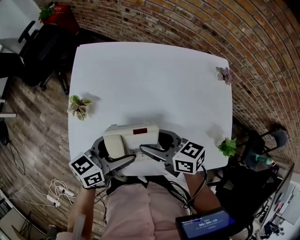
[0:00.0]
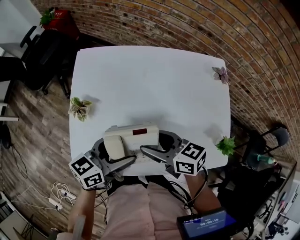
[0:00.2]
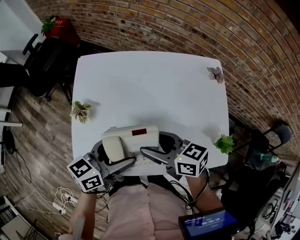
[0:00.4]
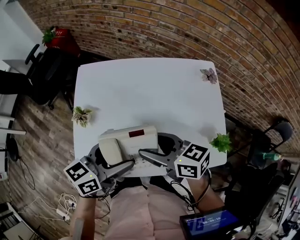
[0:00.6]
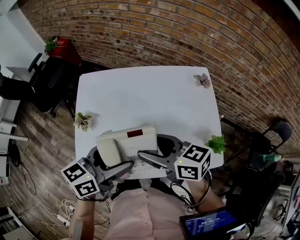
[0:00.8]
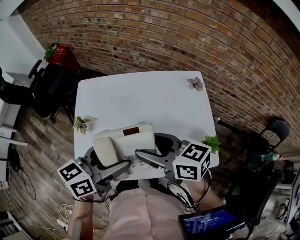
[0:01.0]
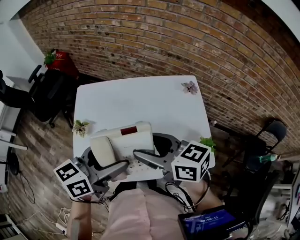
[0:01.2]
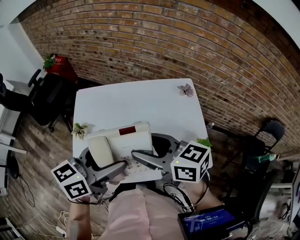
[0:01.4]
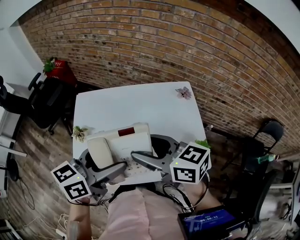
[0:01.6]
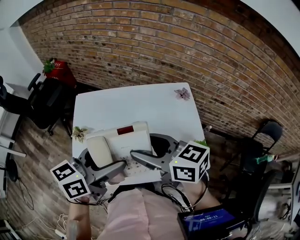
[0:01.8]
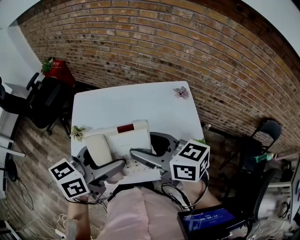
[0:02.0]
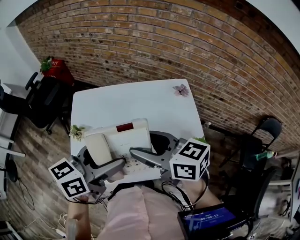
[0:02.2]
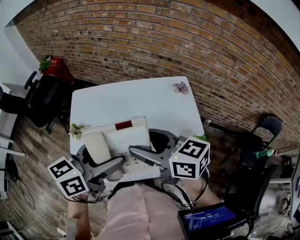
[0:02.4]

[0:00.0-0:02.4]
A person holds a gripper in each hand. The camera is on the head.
0.0 to 1.2 s: Both grippers move upward, about 20 cm.
1.2 to 2.4 s: The grippers move only a little.

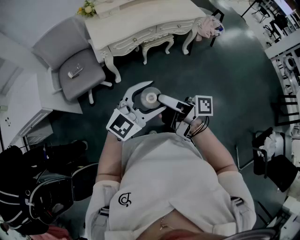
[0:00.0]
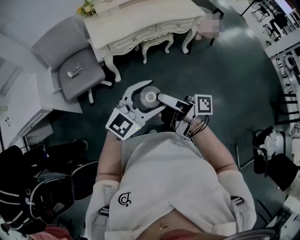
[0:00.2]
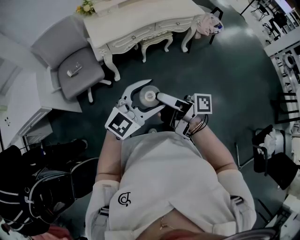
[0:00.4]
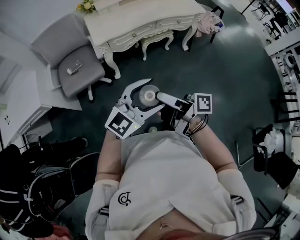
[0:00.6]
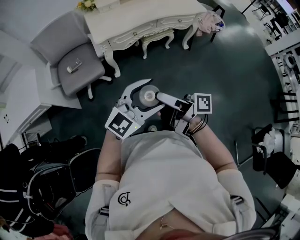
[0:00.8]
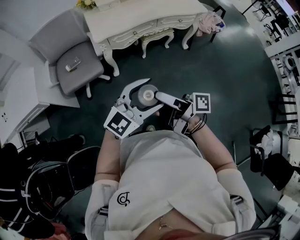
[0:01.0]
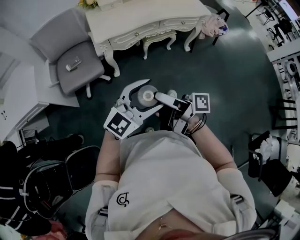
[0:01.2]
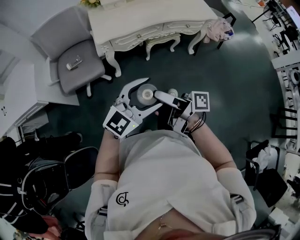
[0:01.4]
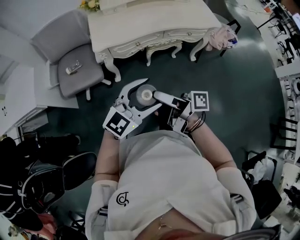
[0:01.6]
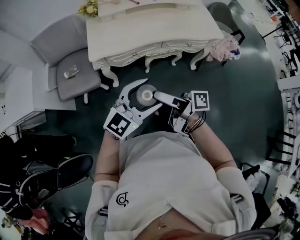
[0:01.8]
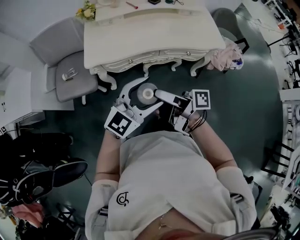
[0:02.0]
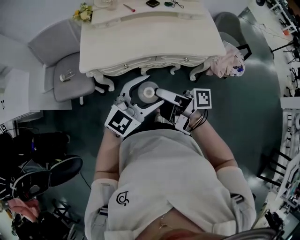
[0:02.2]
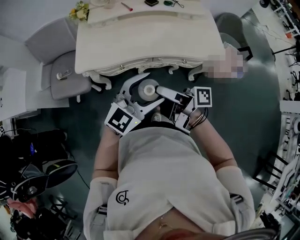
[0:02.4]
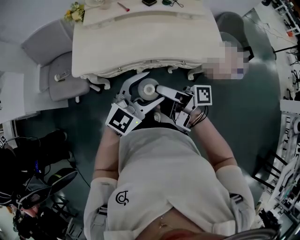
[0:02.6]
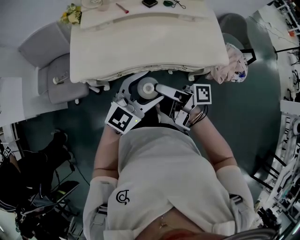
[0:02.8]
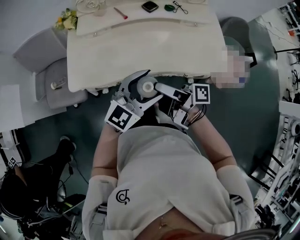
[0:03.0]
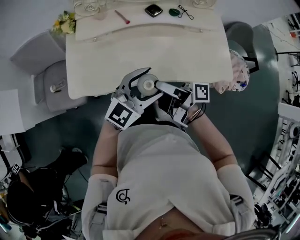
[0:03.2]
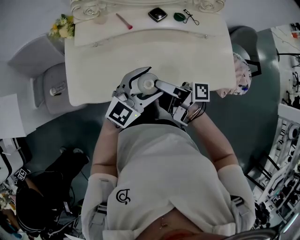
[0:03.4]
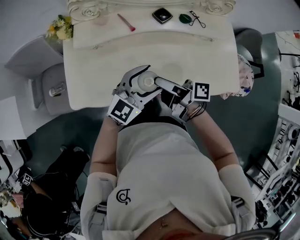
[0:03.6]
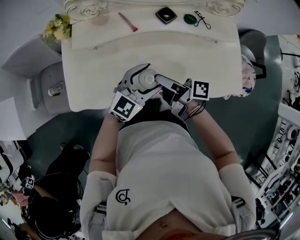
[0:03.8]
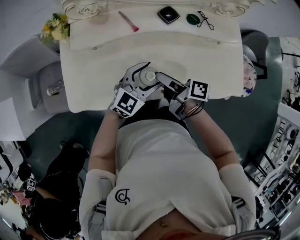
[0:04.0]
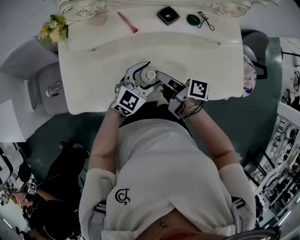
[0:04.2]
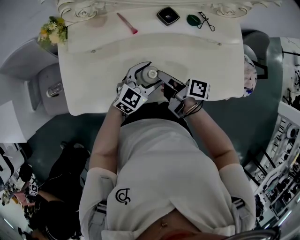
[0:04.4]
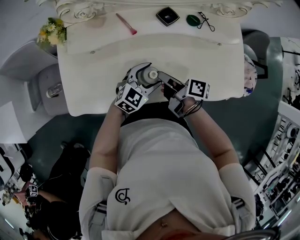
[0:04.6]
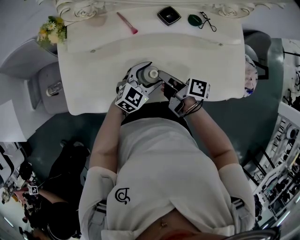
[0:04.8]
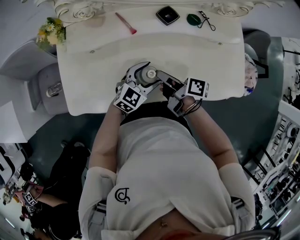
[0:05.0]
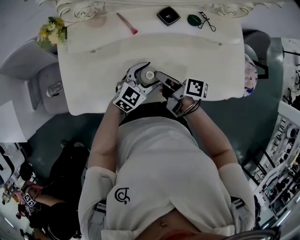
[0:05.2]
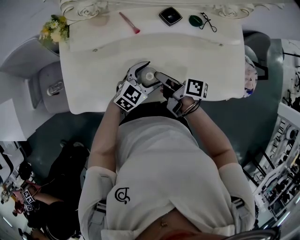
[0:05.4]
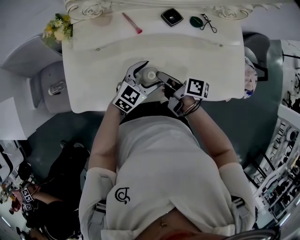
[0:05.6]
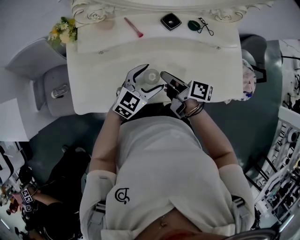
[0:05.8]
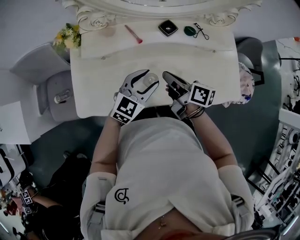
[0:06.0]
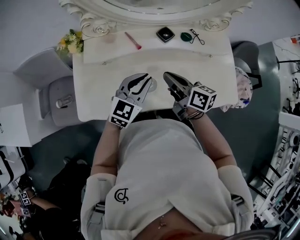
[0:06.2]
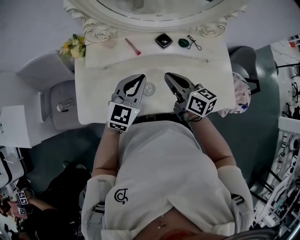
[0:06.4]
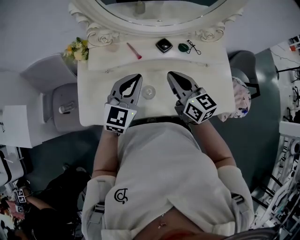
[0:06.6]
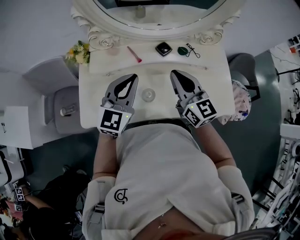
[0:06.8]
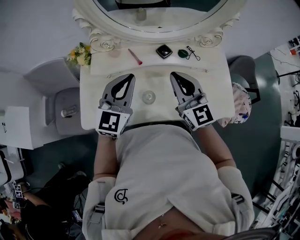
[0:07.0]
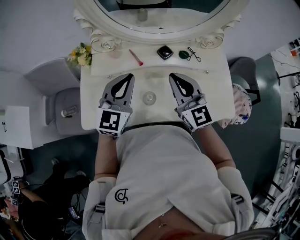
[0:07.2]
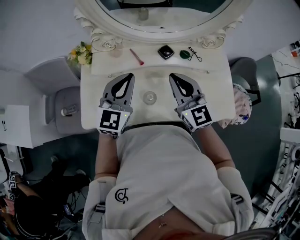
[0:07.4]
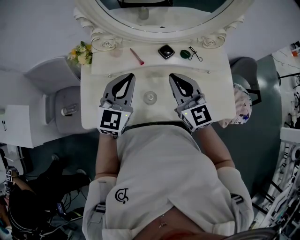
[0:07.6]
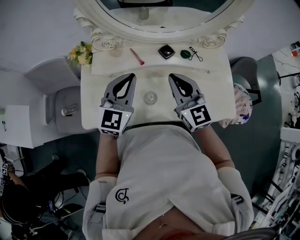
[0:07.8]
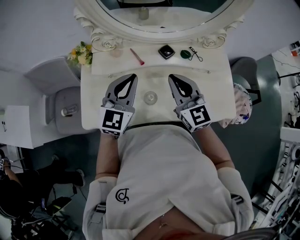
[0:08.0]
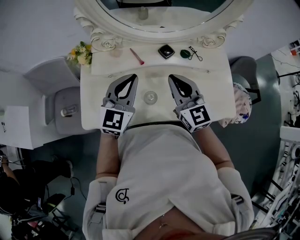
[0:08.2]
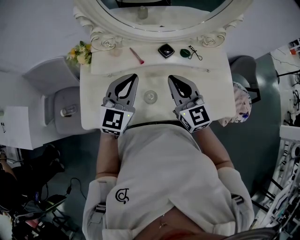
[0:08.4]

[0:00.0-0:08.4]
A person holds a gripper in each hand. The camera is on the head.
0.0 to 1.4 s: The two grippers go approximately 10 cm forward.
1.4 to 2.8 s: Both grippers are carried forward and to the right, about 40 cm.
2.8 to 4.2 s: The grippers both shift forward and downward by roughly 30 cm. The right gripper turns by about 30 degrees, and closes.
4.2 to 5.6 s: The grippers move only a little.
5.6 to 7.0 s: Both grippers move upward, about 25 cm. The right gripper rolls counterclockwise, seen from behind, by about 90 degrees, and closes its fingers. The left gripper changes its angle by some 40 degrees, and closes up.
7.0 to 8.4 s: There are only small adjustments of the grippers.

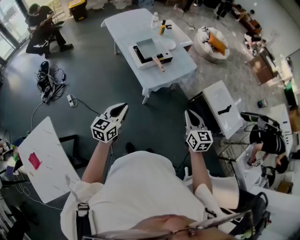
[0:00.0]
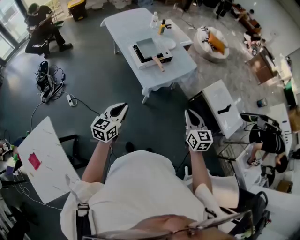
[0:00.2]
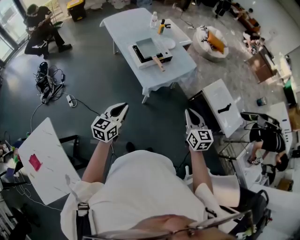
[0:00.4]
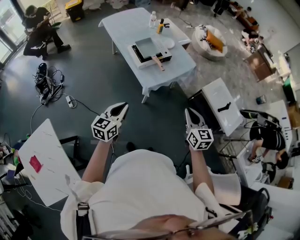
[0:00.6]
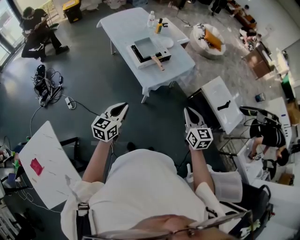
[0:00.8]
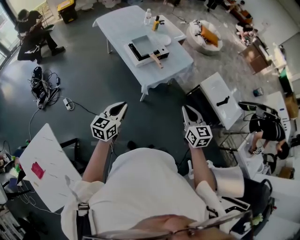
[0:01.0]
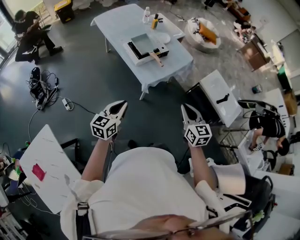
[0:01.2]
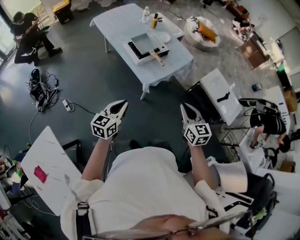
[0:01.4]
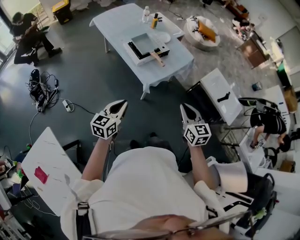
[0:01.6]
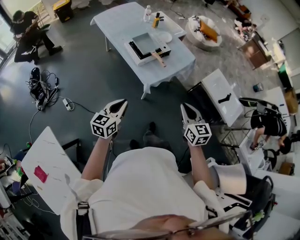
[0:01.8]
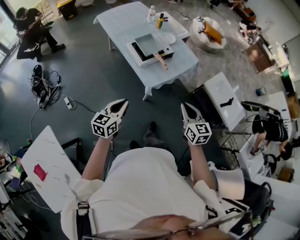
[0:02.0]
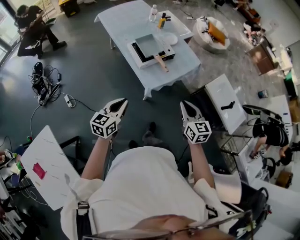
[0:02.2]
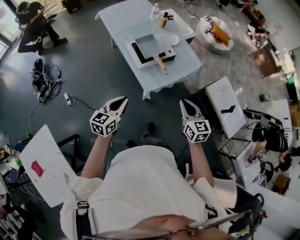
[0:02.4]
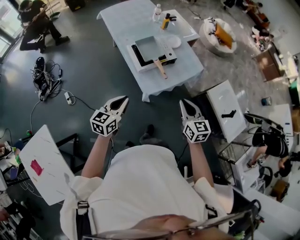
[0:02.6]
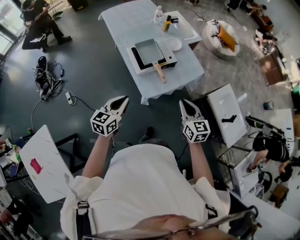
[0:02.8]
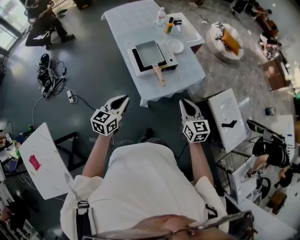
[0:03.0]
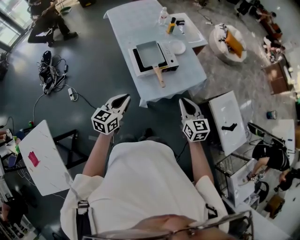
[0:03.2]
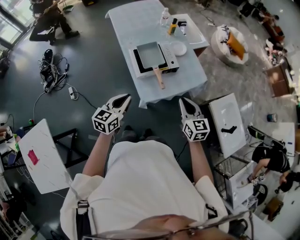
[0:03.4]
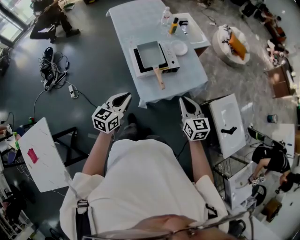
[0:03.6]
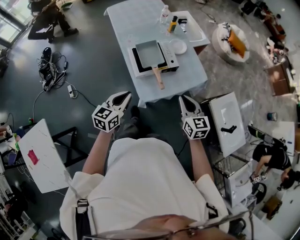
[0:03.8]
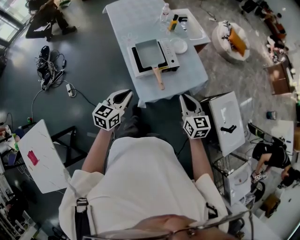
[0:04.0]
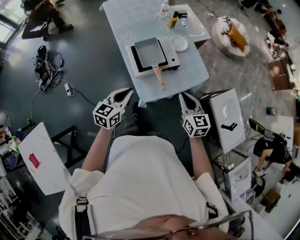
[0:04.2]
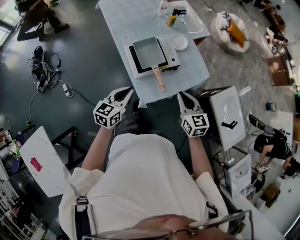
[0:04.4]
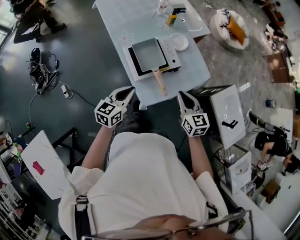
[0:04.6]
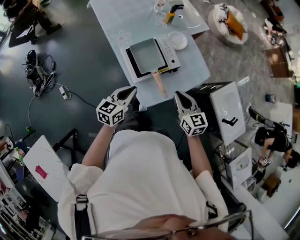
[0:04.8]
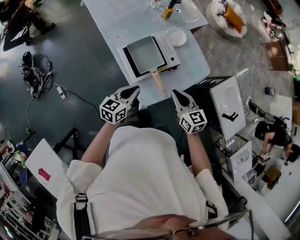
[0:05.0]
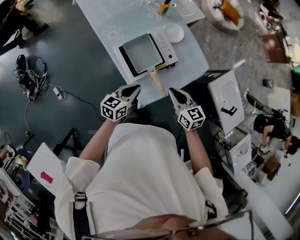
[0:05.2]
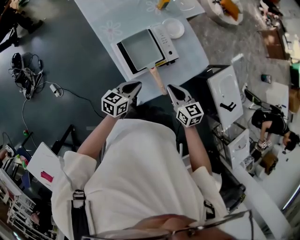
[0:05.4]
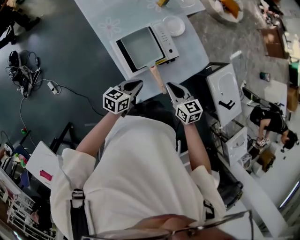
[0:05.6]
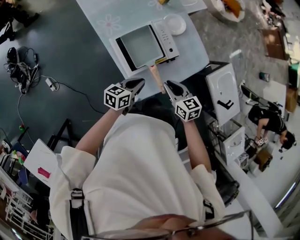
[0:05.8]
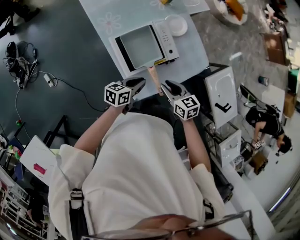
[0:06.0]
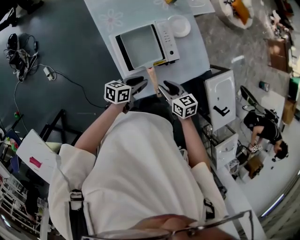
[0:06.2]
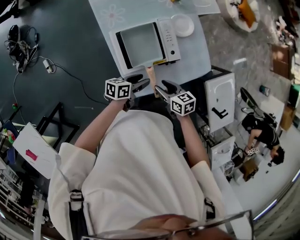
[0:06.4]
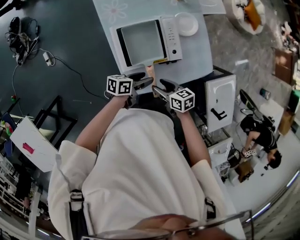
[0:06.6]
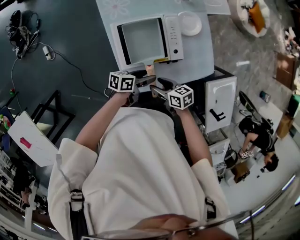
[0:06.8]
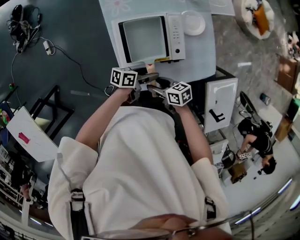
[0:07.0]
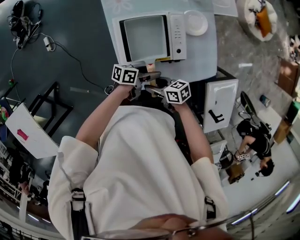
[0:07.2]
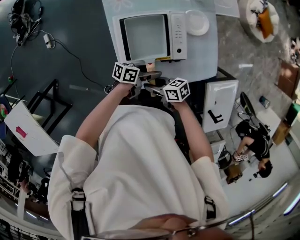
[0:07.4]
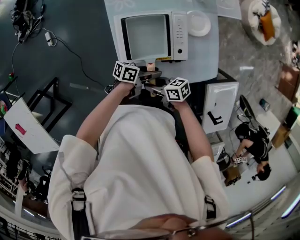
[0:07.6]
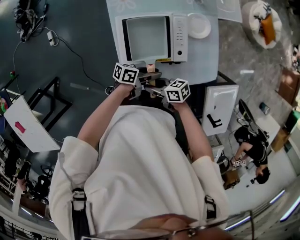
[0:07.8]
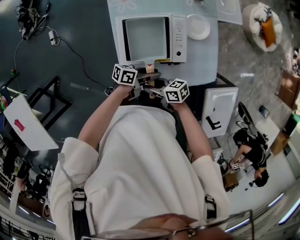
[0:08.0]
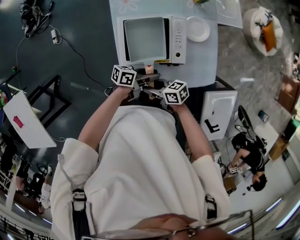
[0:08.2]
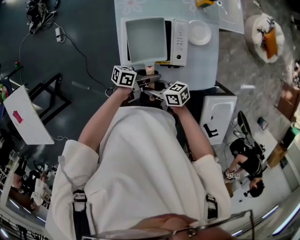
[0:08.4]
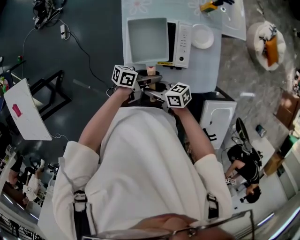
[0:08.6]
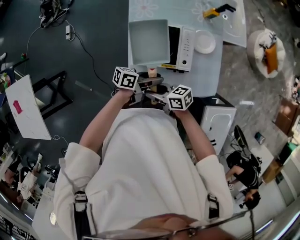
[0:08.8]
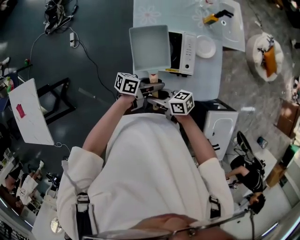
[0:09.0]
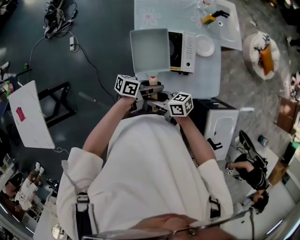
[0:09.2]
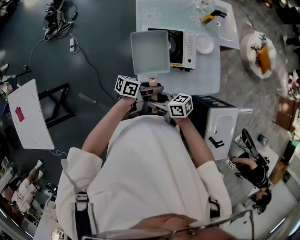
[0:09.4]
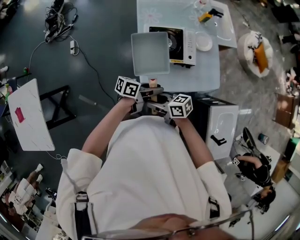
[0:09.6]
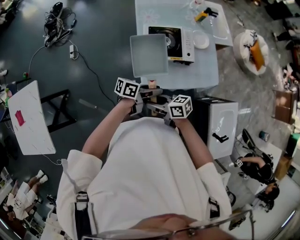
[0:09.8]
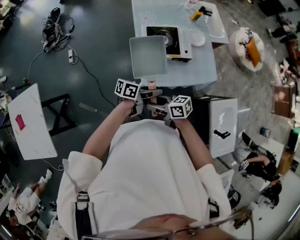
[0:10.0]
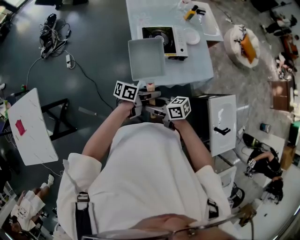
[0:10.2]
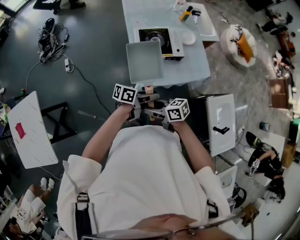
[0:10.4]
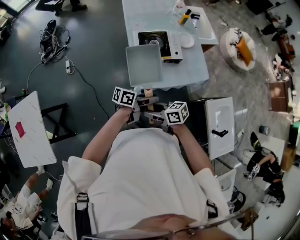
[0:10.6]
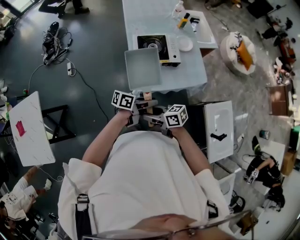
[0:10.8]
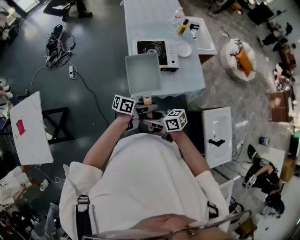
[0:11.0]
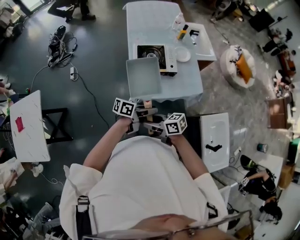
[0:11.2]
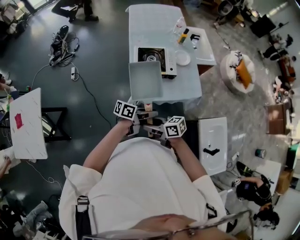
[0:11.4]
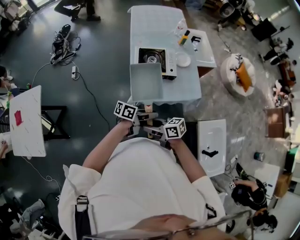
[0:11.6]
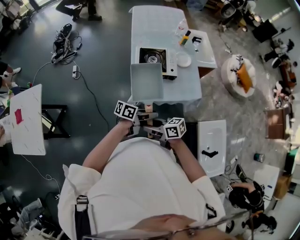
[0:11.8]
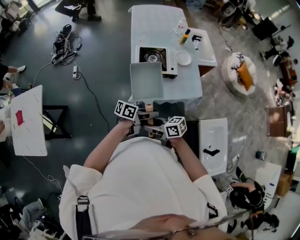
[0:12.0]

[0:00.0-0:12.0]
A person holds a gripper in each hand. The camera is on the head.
0.0 to 1.6 s: The two grippers go roughly 5 cm to the left.
1.6 to 3.0 s: The grippers both shift forward by about 20 cm.
3.0 to 4.4 s: Both grippers travel together forward, some 10 cm.
4.4 to 6.0 s: The left gripper goes some 20 cm downward and forward, and turns by roughly 40 degrees. Meanwhile the right gripper shifts roughly 15 cm downward, forward and to the left, rotates roughly 20 degrees, and opens up.
6.0 to 7.6 s: The right gripper moves downward, some 10 cm, turns by about 50 degrees, and opens, then closes again. Meanwhile the left gripper ends up approximately 15 cm from where it was, rotates approximately 30 degrees, and opens.
7.6 to 9.0 s: Both grippers move upward, approximately 10 cm.
9.0 to 10.4 s: The left gripper ends up about 20 cm from where it was, while the right gripper shifts by roughly 20 cm.
10.4 to 12.0 s: The right gripper moves some 10 cm. The left gripper ends up approximately 10 cm from where it was.

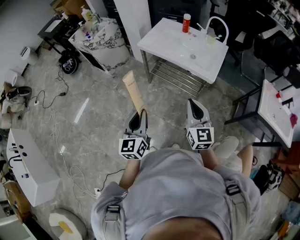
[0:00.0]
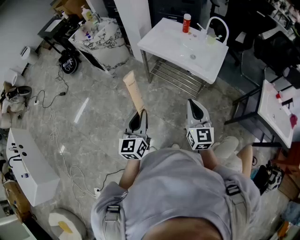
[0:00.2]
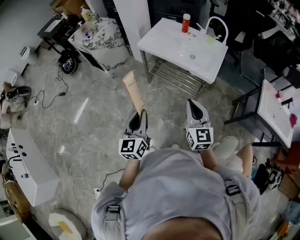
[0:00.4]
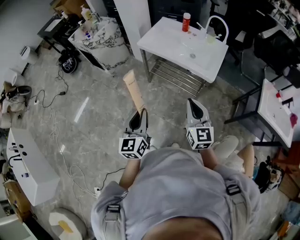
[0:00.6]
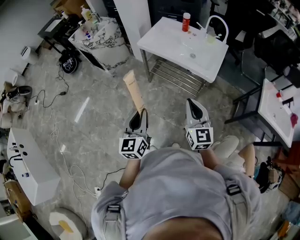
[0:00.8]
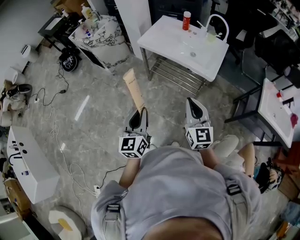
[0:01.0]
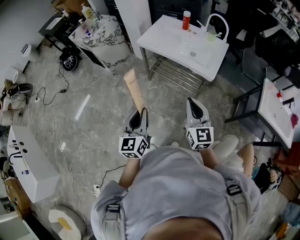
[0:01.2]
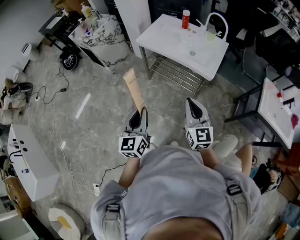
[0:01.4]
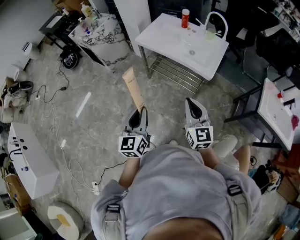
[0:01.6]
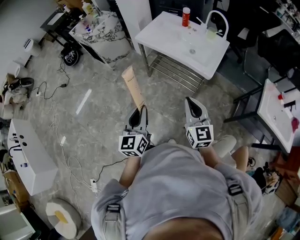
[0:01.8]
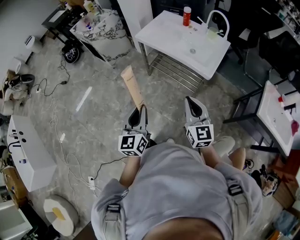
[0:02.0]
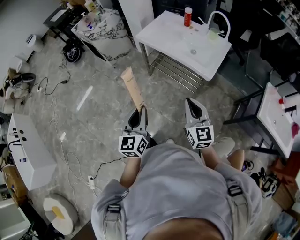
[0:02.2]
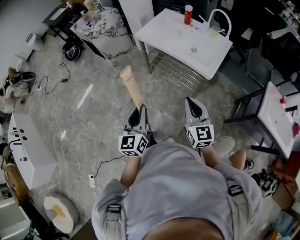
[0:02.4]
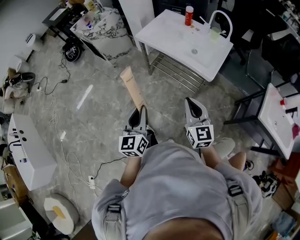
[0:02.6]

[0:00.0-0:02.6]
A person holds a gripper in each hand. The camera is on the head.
0.0 to 1.2 s: The grippers make only small movements.
1.2 to 2.6 s: The right gripper changes place by about 5 cm; the left gripper travels to the right by roughly 5 cm.
